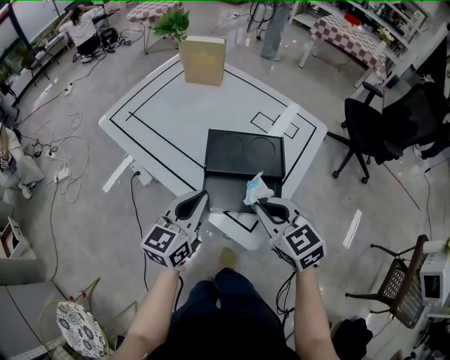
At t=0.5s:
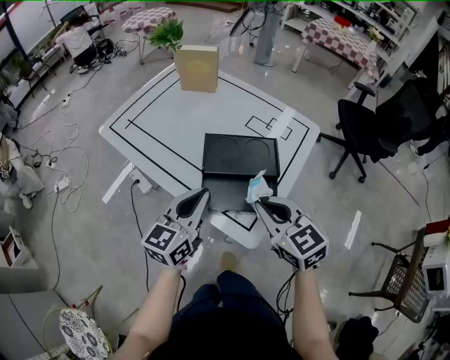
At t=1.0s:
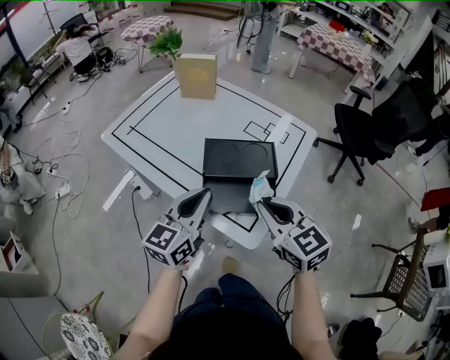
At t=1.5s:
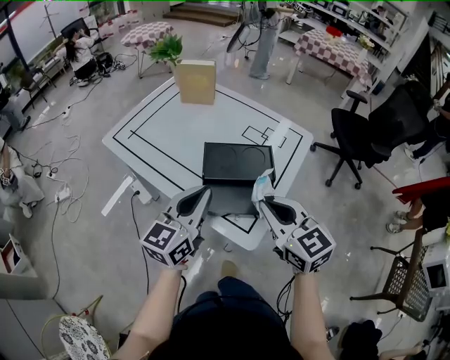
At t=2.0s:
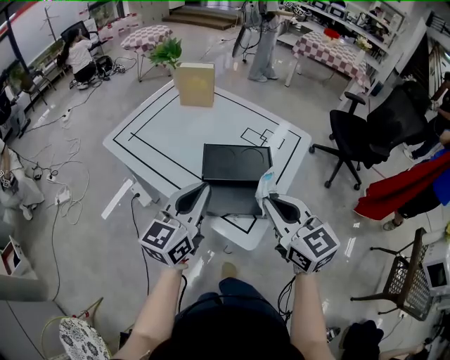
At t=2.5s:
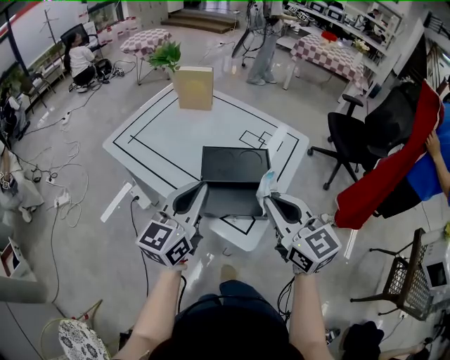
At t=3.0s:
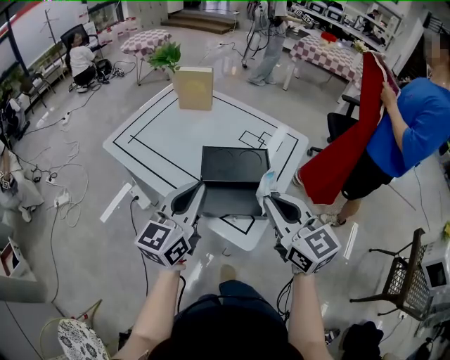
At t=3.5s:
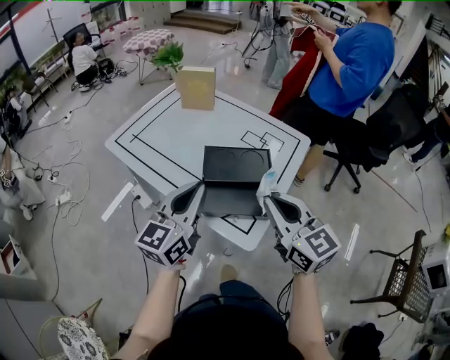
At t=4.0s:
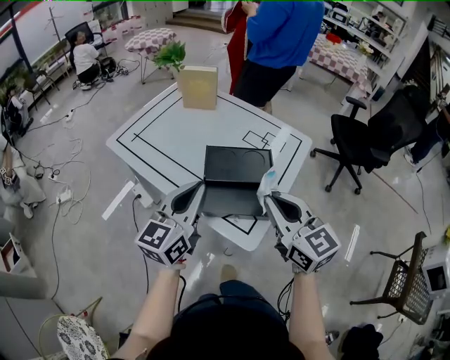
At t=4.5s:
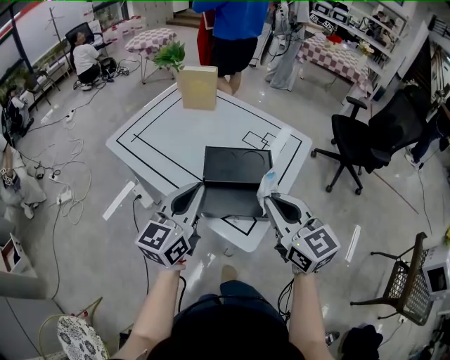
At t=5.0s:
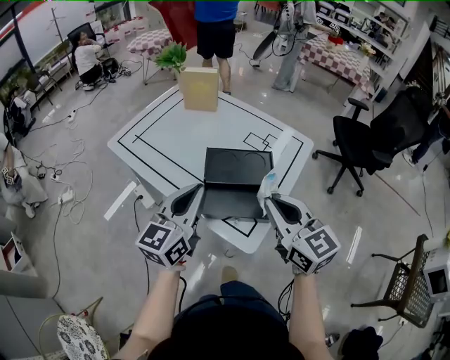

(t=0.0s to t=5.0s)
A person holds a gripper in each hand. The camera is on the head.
t=0.0s - t=2.5s: Both grippers travel together upward, roughly 10 cm. The right gripper turns by approximately 30 degrees.
t=2.5s - t=5.0s: The grippers stay close to where they were, moving slightly.

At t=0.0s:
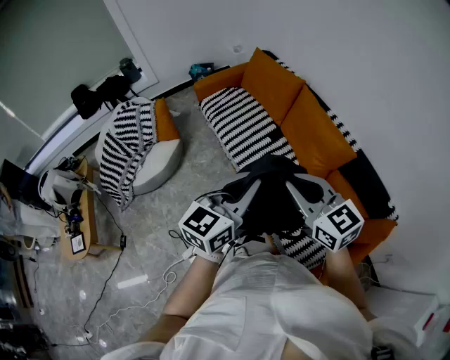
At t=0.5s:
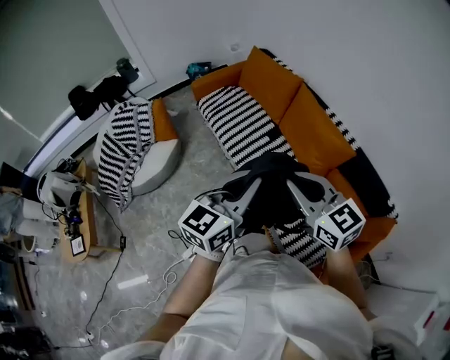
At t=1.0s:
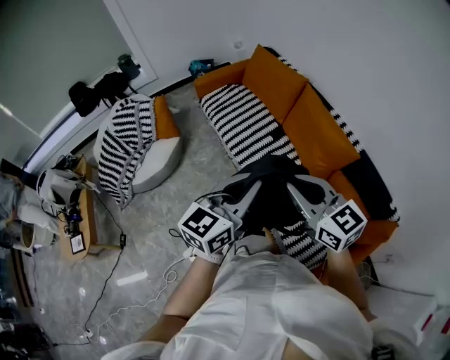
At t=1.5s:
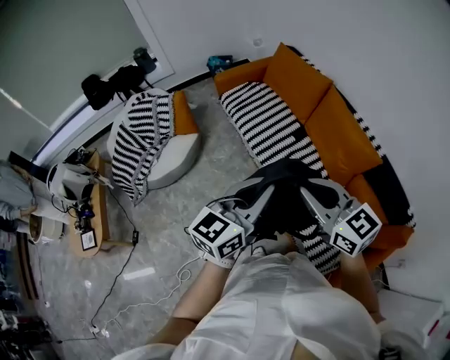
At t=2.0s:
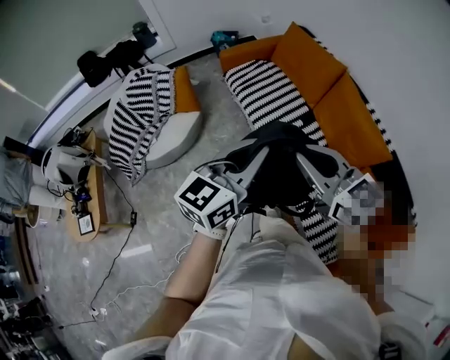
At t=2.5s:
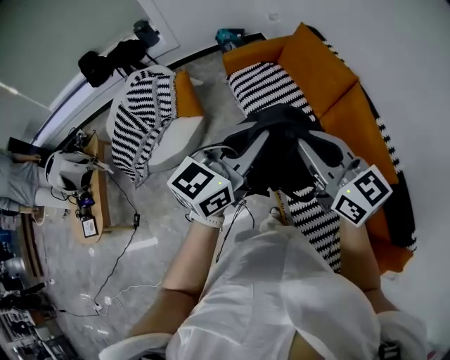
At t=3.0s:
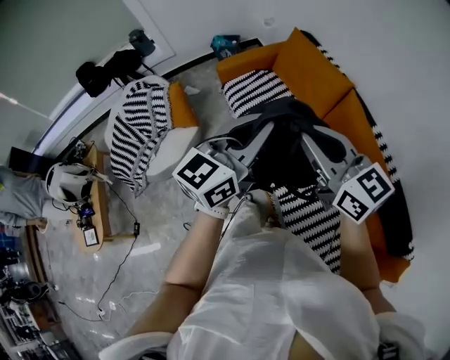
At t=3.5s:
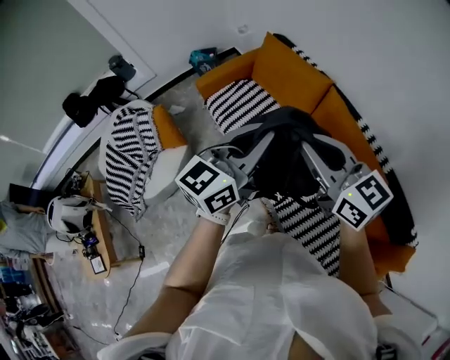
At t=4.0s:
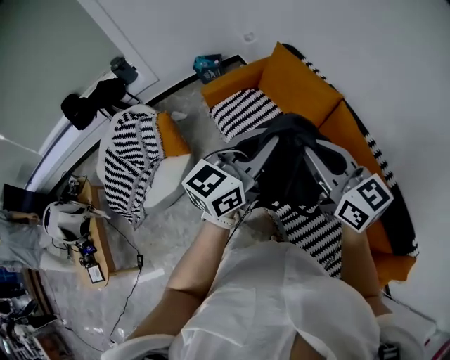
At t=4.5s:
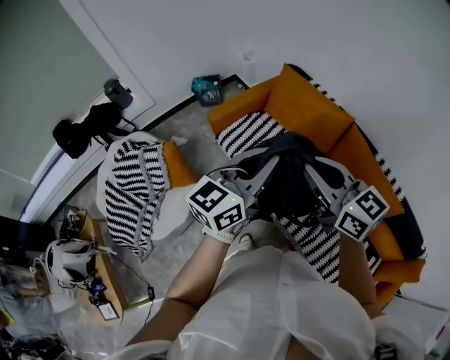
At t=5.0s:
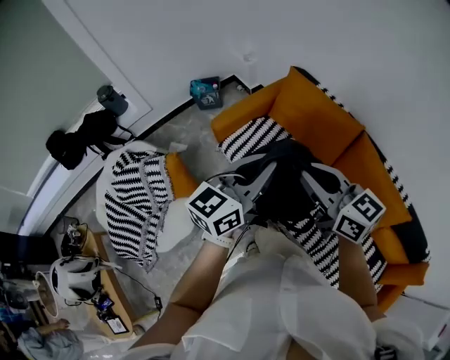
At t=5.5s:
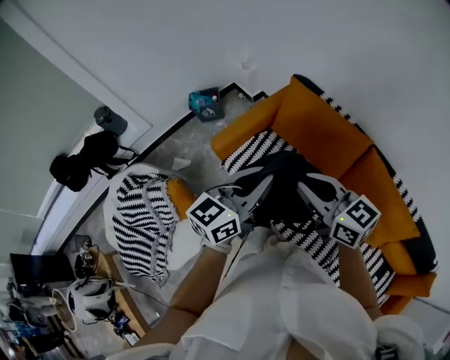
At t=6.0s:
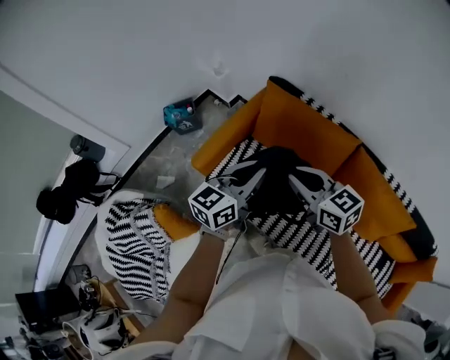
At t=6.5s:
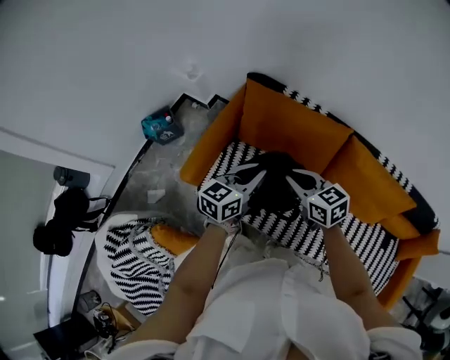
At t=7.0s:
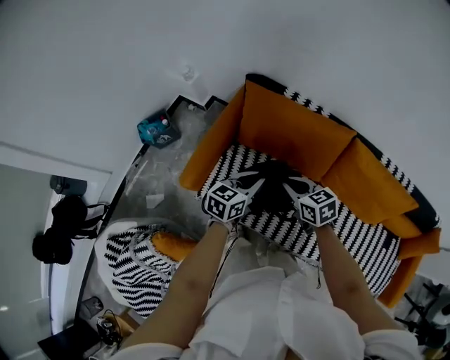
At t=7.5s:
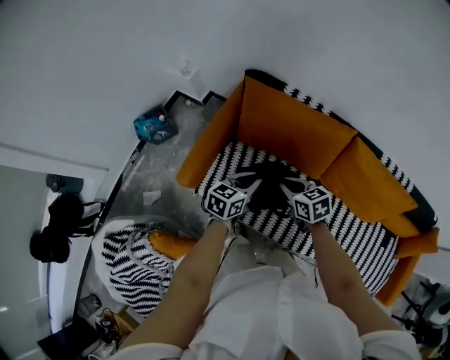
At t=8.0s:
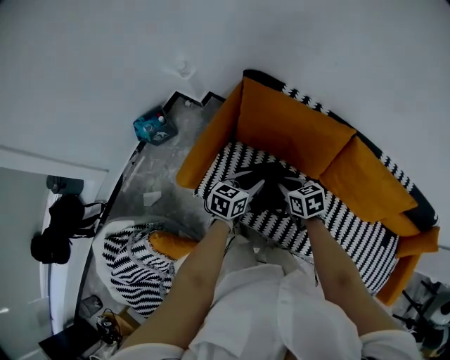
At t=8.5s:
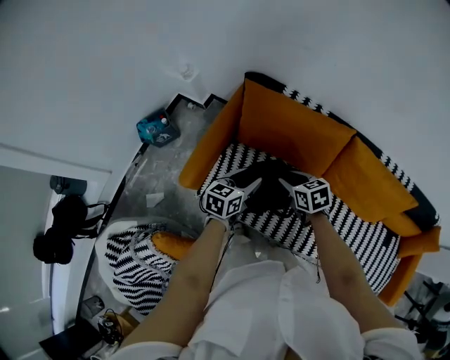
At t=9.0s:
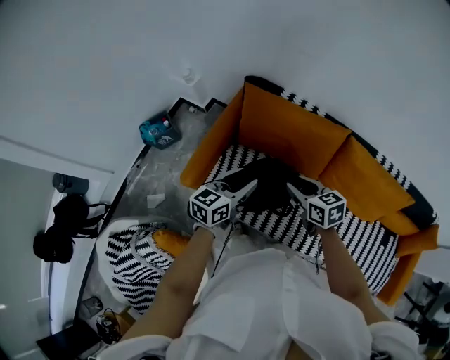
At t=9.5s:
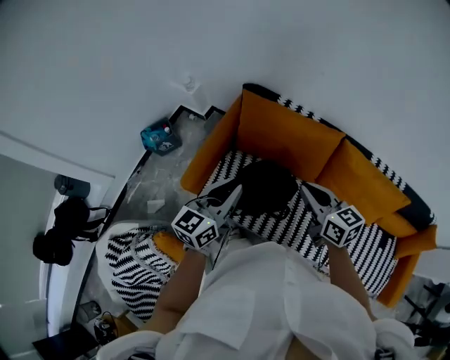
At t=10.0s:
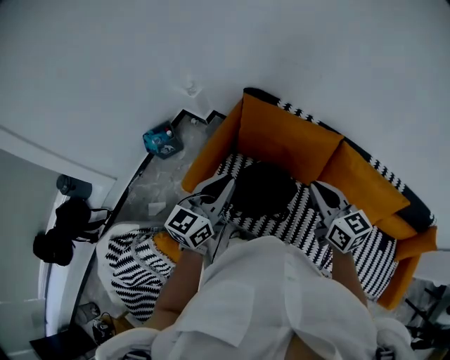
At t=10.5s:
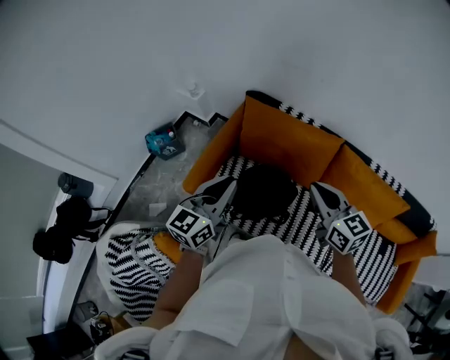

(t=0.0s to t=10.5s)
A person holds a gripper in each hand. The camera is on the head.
t=0.0s - t=2.0s: The two grippers go some 15 cm to the left and forward.
t=2.0s - t=4.0s: The grippers both shift forward by some 25 cm.
t=4.0s - t=6.5s: The left gripper ends up some 50 cm from where it was, and rotates approximately 40 degrees. Meanwhile the right gripper changes place by about 40 cm, and rotates some 40 degrees.
t=6.5s - t=8.5s: Both grippers move downward, approximately 10 cm. The left gripper opens, while the right gripper opens.
t=8.5s - t=10.5s: Both grippers travel together upward, roughly 25 cm. The right gripper tilts its fingers roughly 30 degrees upward, and closes. The left gripper changes its angle by approximately 30 degrees, and closes its fingers.

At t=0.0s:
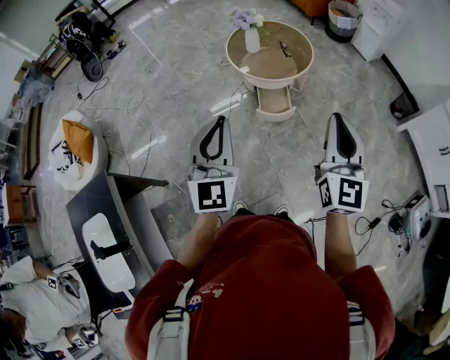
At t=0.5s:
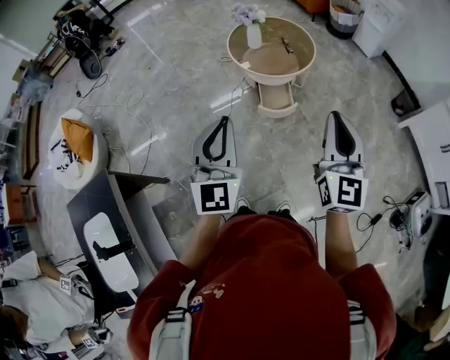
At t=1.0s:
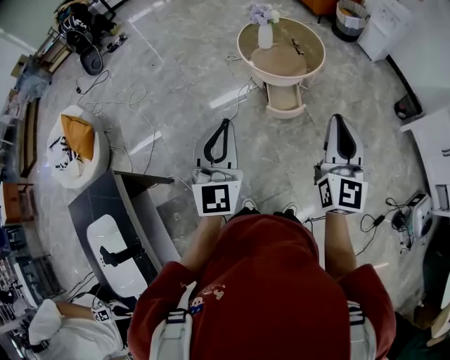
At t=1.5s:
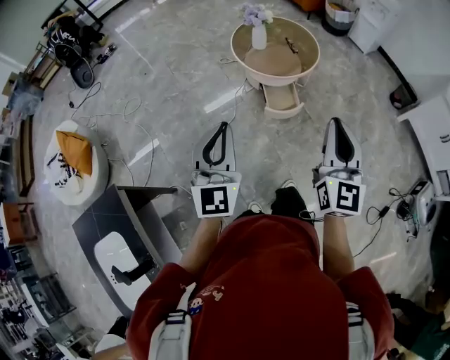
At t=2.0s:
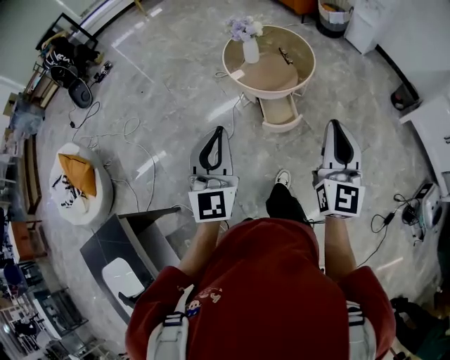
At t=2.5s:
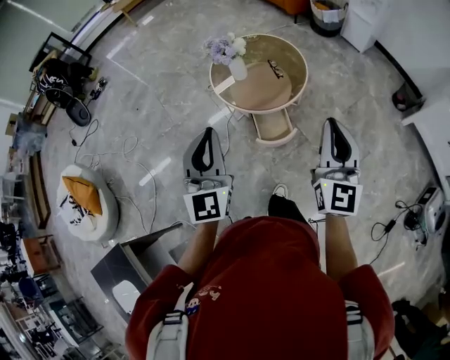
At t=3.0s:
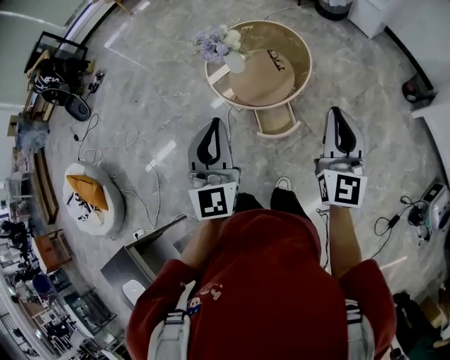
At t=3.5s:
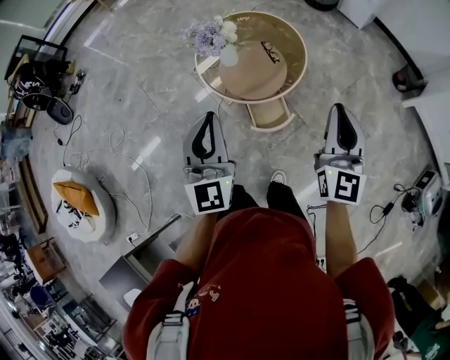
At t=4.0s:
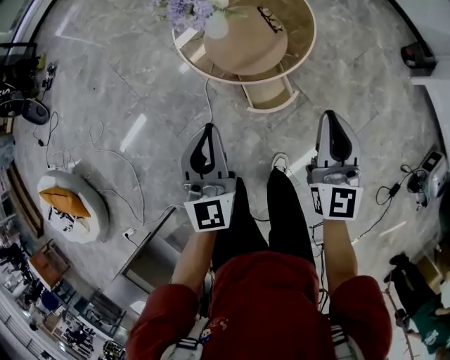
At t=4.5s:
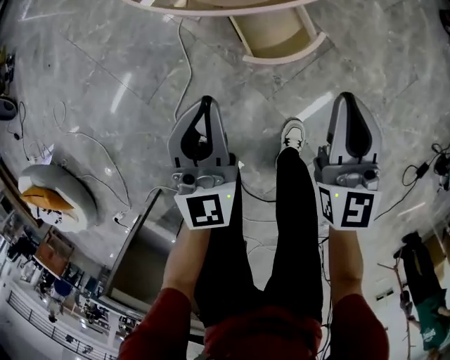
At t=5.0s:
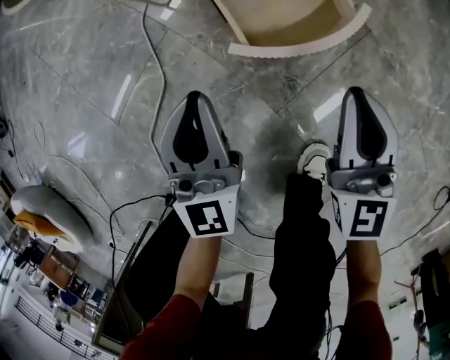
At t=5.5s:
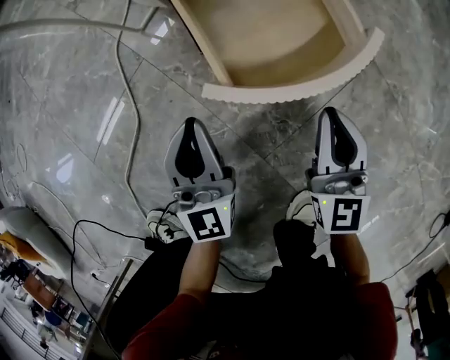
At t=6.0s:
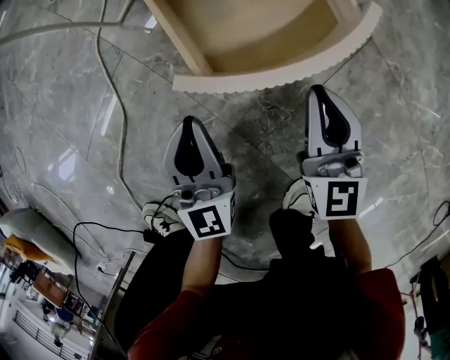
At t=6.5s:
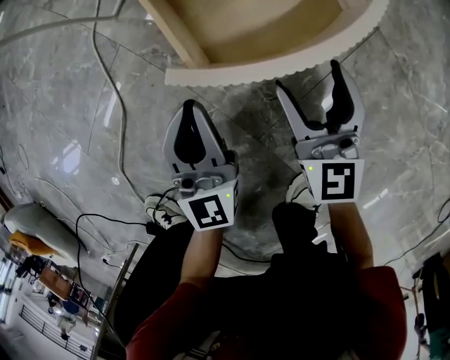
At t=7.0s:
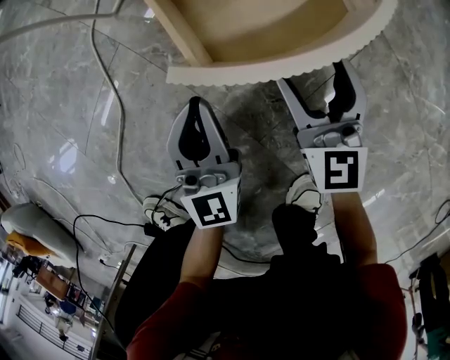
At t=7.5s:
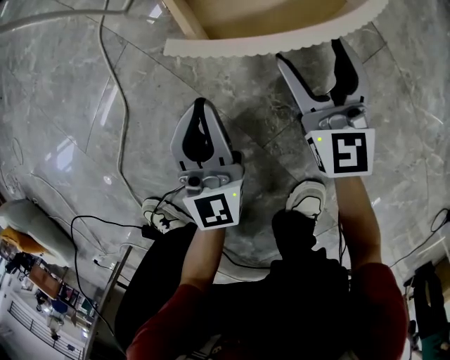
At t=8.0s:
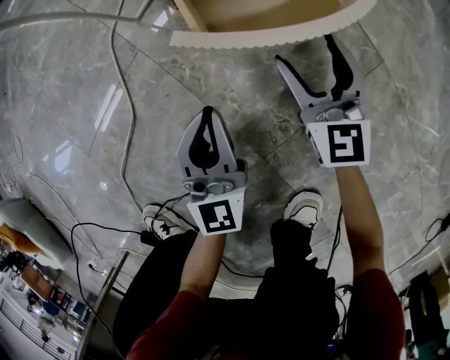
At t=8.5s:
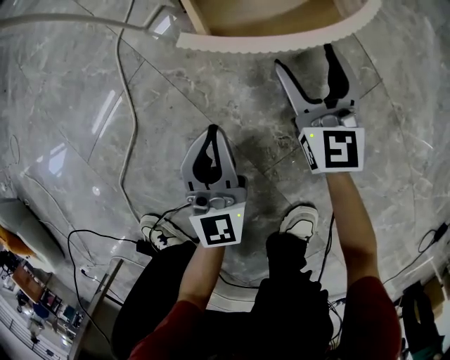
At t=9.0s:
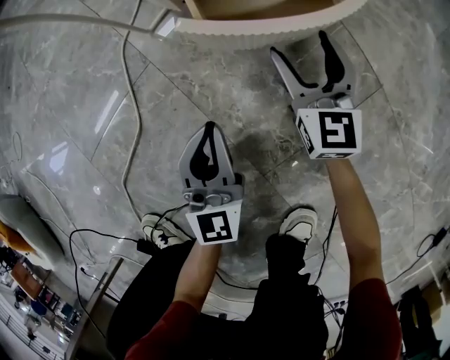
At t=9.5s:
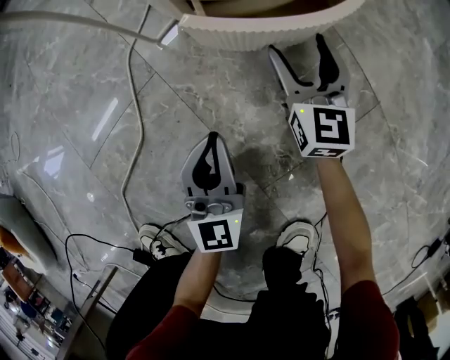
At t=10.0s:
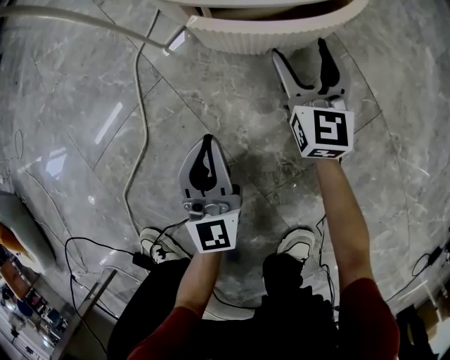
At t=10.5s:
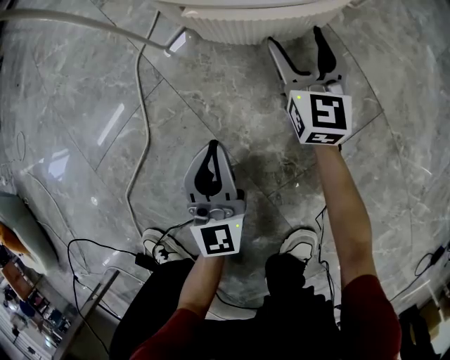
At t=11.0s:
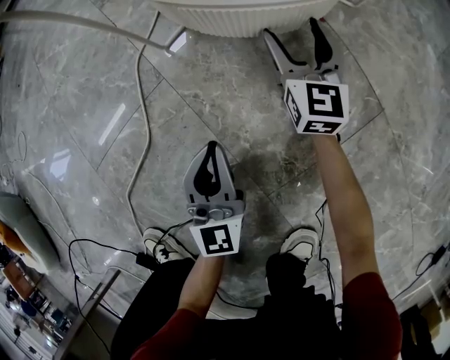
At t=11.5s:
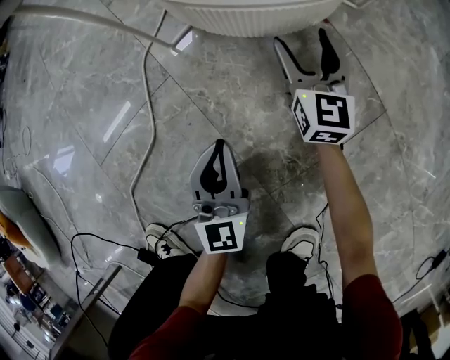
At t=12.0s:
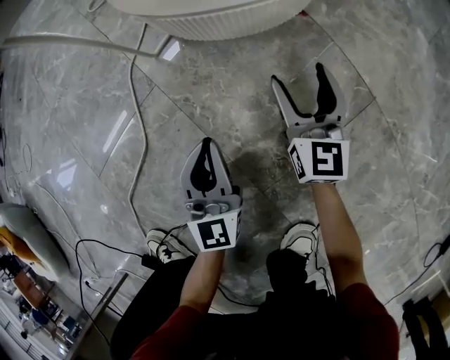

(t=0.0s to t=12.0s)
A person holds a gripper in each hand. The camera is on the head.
t=0.0s - t=2.0s: The grippers both shift forward and to the left by about 15 cm.
t=2.0s - t=4.0s: The grippers both shift forward and downward by some 35 cm.
t=4.0s - t=6.0s: Both grippers move downward, about 70 cm.
t=6.0s - t=8.0s: The right gripper goes approximately 10 cm forward, and opens.
t=8.0s - t=10.0s: The right gripper travels forward by about 10 cm.
t=10.0s - t=12.0s: The right gripper travels backward by some 5 cm.
